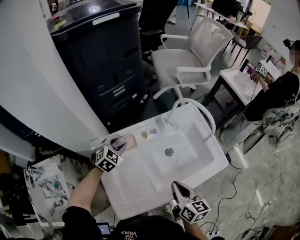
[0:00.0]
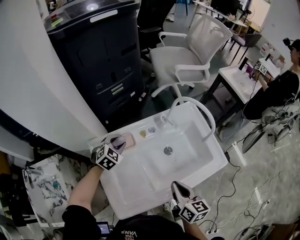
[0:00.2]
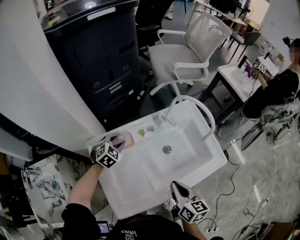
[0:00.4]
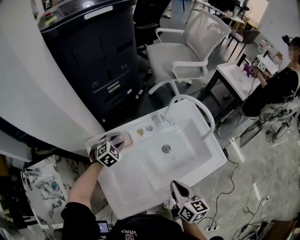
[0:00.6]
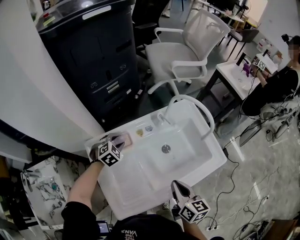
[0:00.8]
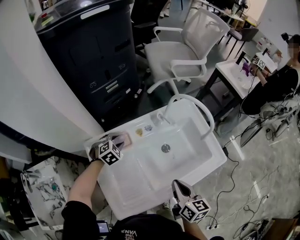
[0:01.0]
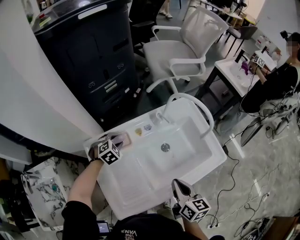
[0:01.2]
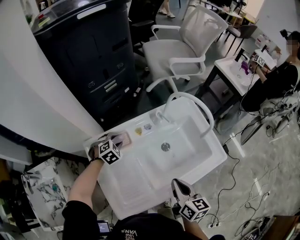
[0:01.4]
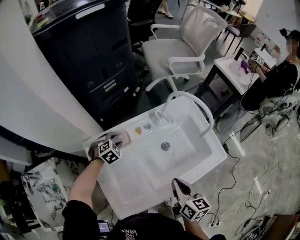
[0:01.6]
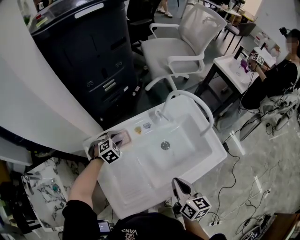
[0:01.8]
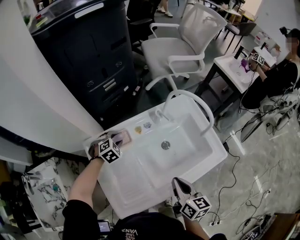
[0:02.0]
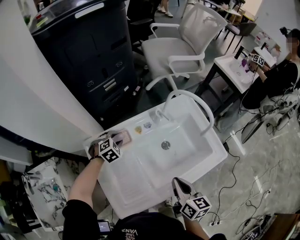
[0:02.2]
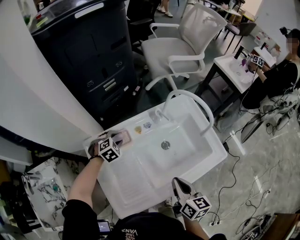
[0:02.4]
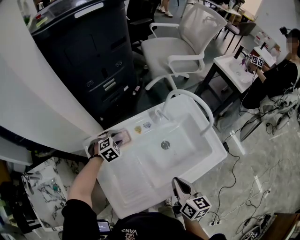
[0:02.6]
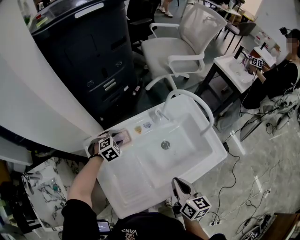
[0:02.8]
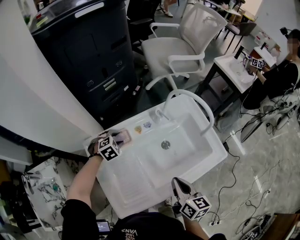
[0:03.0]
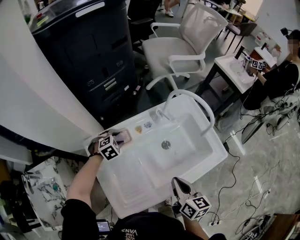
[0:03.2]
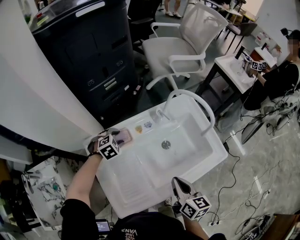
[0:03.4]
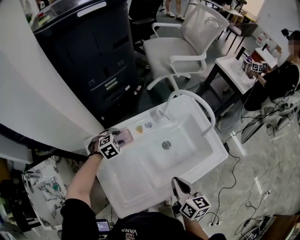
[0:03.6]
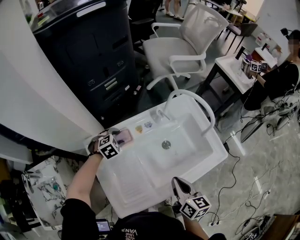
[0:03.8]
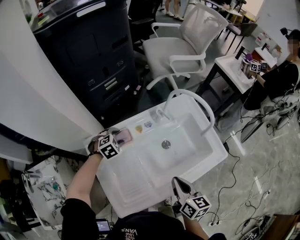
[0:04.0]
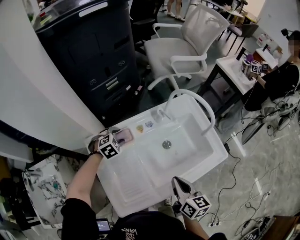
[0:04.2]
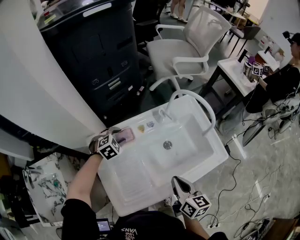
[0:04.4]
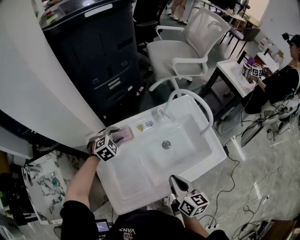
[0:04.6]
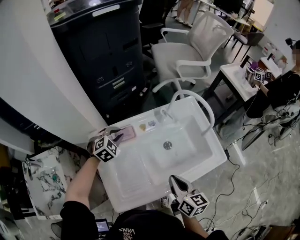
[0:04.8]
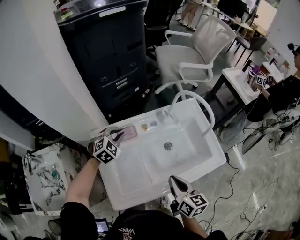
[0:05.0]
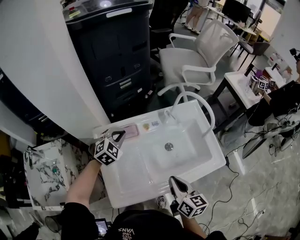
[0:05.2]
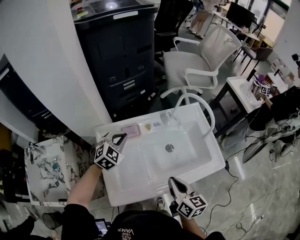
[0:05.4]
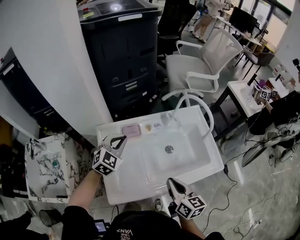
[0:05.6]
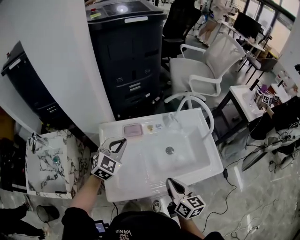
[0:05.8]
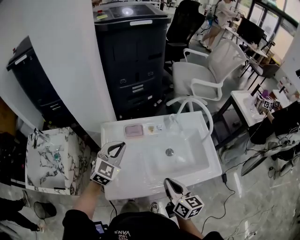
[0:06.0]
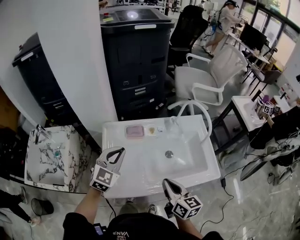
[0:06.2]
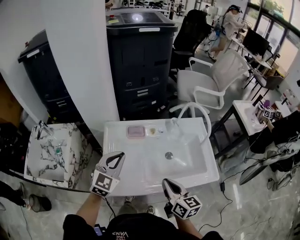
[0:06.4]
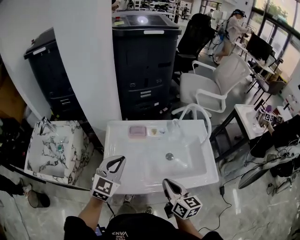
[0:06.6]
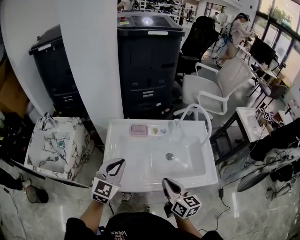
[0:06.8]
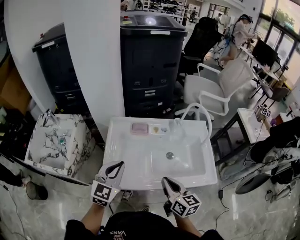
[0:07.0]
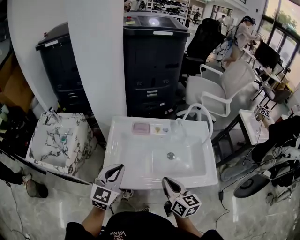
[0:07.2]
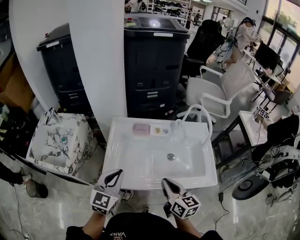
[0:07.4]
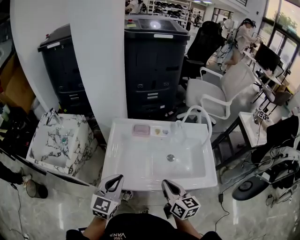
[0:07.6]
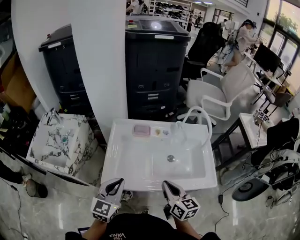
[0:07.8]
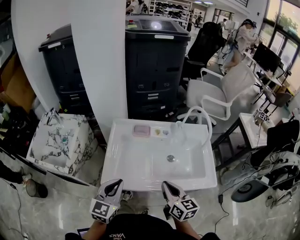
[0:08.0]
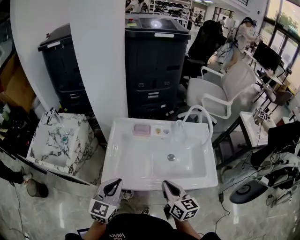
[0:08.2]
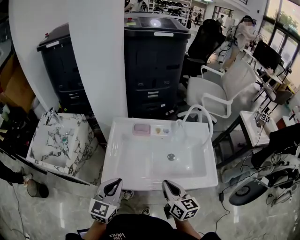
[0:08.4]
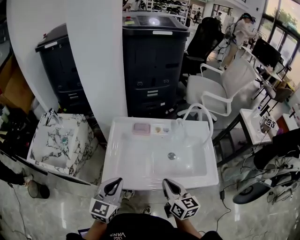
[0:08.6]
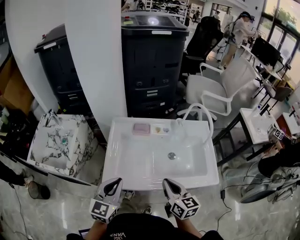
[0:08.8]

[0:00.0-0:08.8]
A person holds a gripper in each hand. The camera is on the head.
0:00.0 to 0:01.4: The left gripper goes about 10 cm downward.
0:01.4 to 0:04.4: There are only small adjustments of the grippers.
0:04.4 to 0:05.8: The left gripper goes approximately 20 cm upward and backward, tilts its fingers roughly 30 degrees upward, and closes up.
0:05.8 to 0:07.4: The left gripper shifts roughly 20 cm backward, and turns by some 30 degrees.
0:07.4 to 0:08.8: The grippers move only a little.

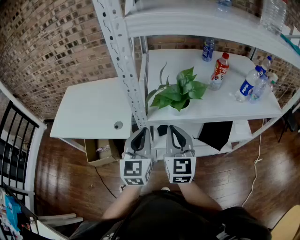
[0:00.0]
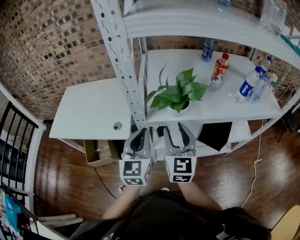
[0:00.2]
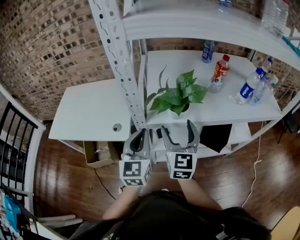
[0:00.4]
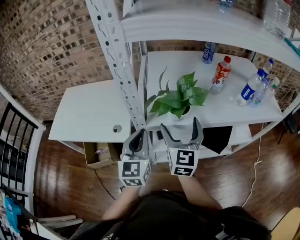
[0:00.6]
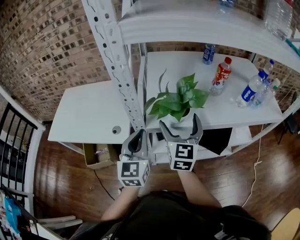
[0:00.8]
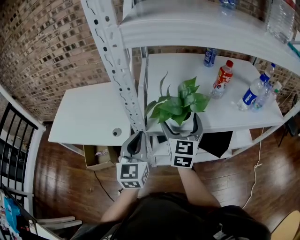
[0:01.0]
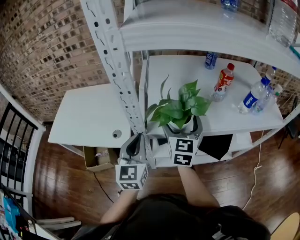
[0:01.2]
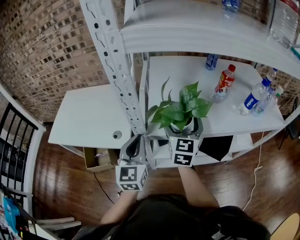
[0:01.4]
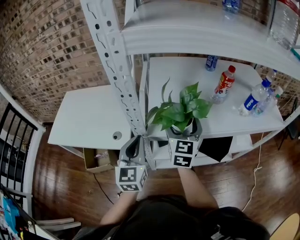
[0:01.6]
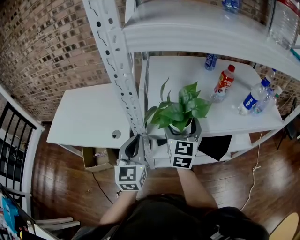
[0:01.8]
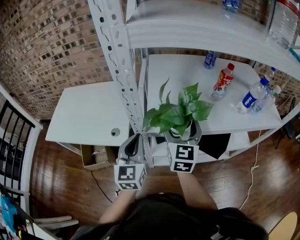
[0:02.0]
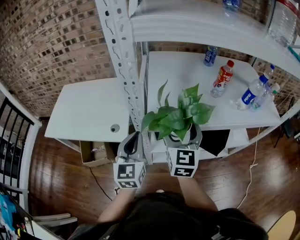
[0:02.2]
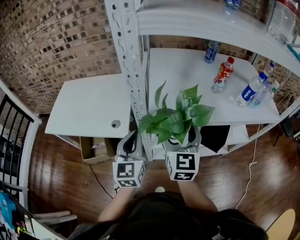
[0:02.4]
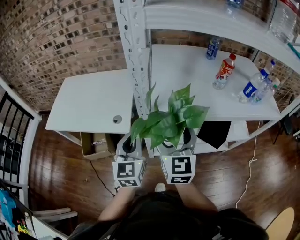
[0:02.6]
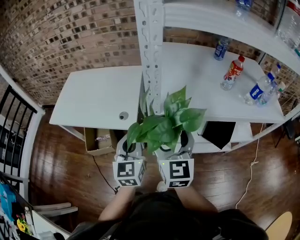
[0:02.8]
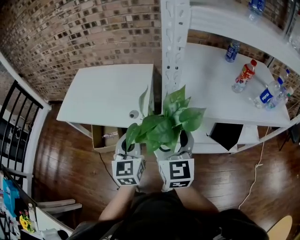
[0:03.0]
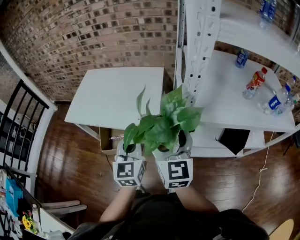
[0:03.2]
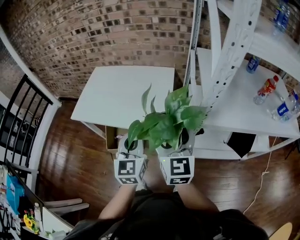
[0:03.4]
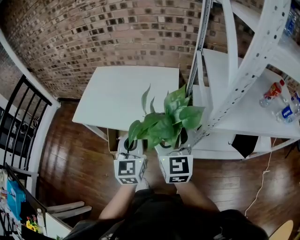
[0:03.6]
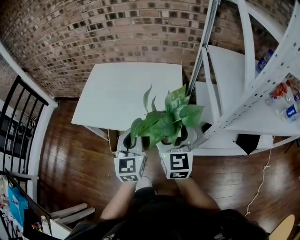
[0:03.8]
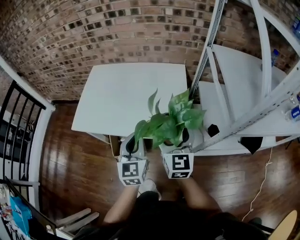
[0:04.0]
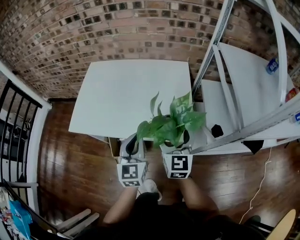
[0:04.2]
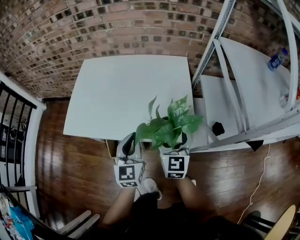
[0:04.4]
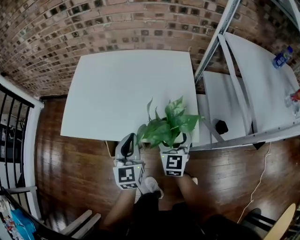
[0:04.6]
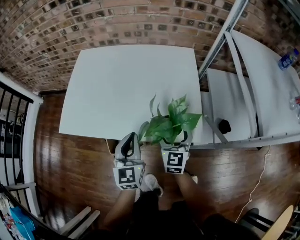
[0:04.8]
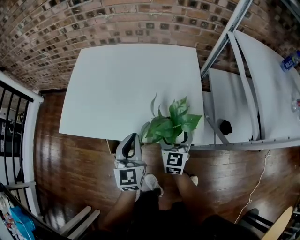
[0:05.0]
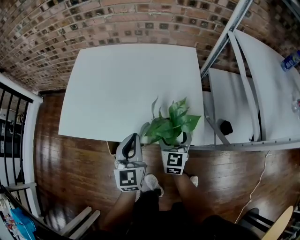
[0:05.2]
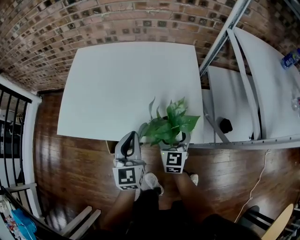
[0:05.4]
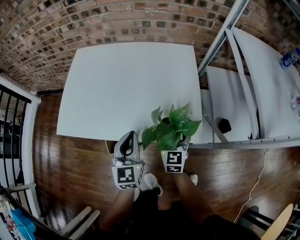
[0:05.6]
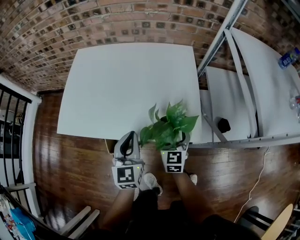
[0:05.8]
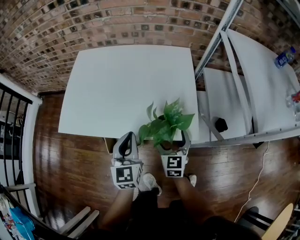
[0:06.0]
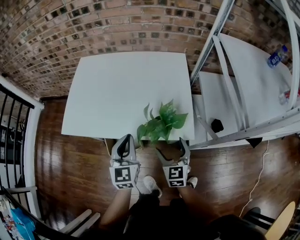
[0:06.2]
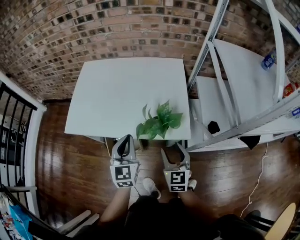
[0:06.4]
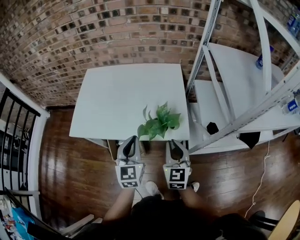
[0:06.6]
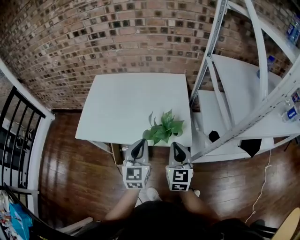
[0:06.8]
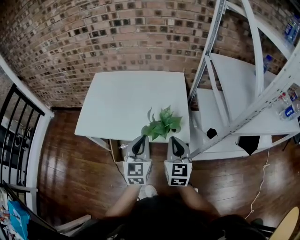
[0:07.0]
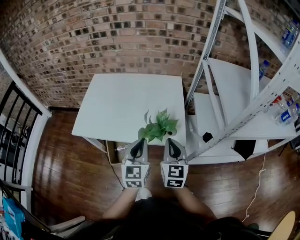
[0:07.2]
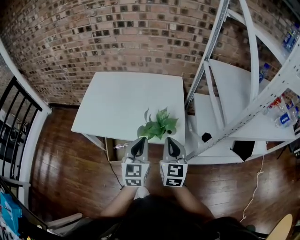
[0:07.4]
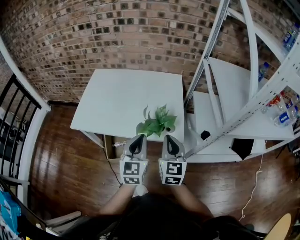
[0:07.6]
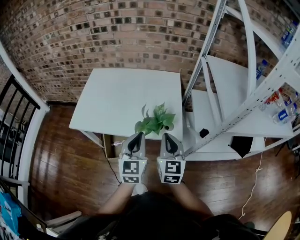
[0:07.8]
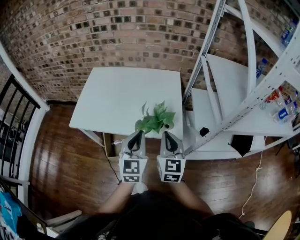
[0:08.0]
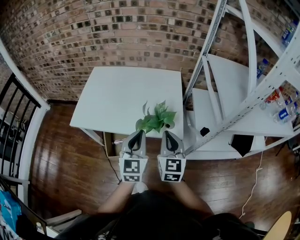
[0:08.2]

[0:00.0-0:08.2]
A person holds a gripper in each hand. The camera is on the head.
0:00.0 to 0:01.6: The right gripper travels forward by about 15 cm, and opens up, while the left gripper shifts by approximately 5 cm.
0:01.6 to 0:03.2: The left gripper shifts some 20 cm to the left; the right gripper goes some 25 cm to the left and backward, and swivels approximately 20 degrees.
0:03.2 to 0:05.0: The right gripper shifts about 40 cm downward, forward and to the left, and turns by approximately 20 degrees, while the left gripper goes approximately 35 cm to the left, downward and forward.
0:05.0 to 0:06.6: The left gripper moves upward and backward, about 10 cm, while the right gripper heads backward and upward, covering approximately 15 cm, and closes its fingers.
0:06.6 to 0:08.2: Both grippers move upward, some 5 cm.

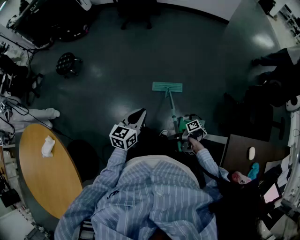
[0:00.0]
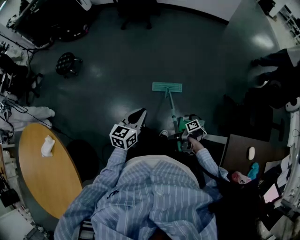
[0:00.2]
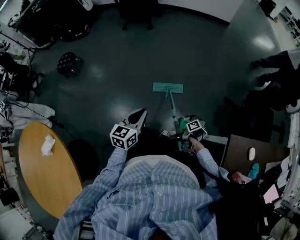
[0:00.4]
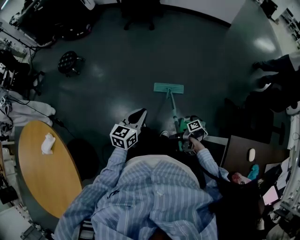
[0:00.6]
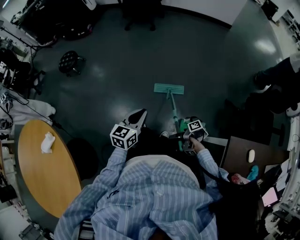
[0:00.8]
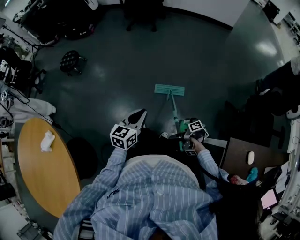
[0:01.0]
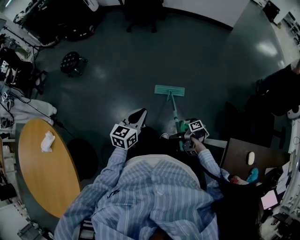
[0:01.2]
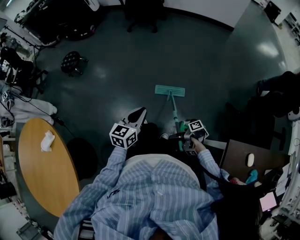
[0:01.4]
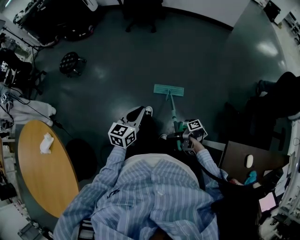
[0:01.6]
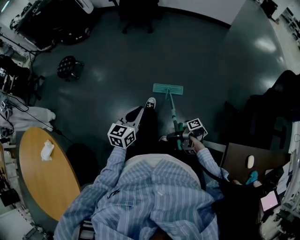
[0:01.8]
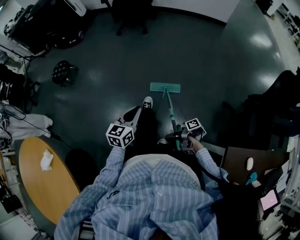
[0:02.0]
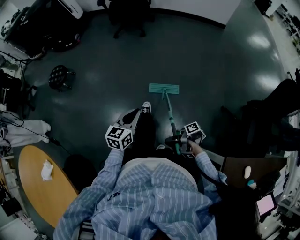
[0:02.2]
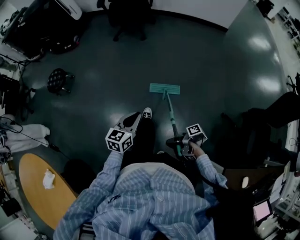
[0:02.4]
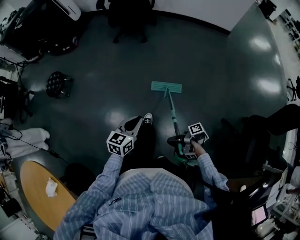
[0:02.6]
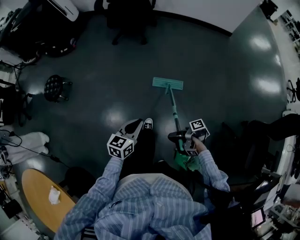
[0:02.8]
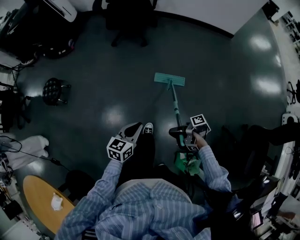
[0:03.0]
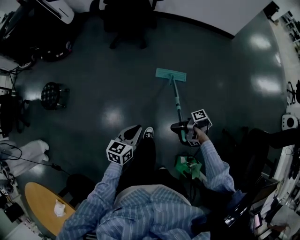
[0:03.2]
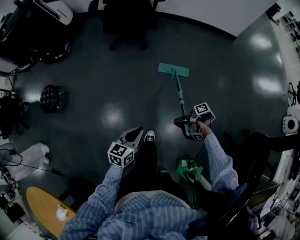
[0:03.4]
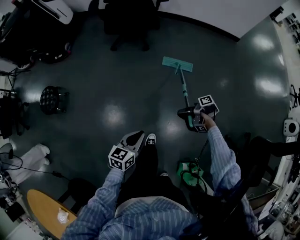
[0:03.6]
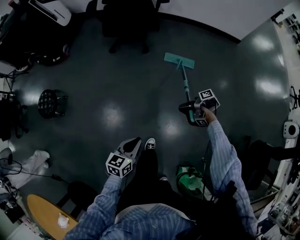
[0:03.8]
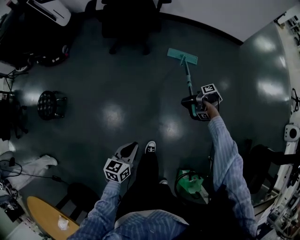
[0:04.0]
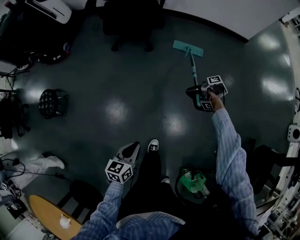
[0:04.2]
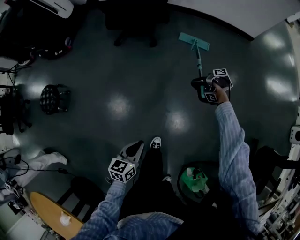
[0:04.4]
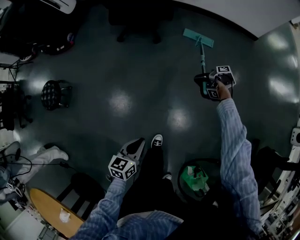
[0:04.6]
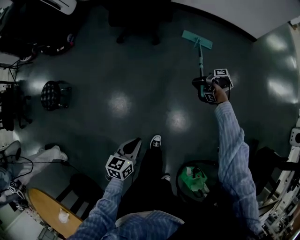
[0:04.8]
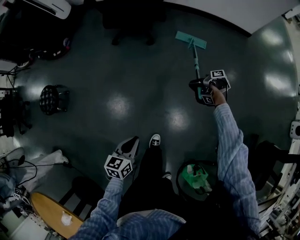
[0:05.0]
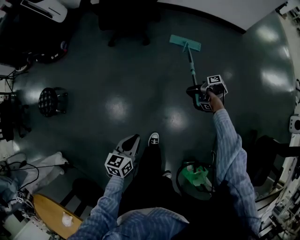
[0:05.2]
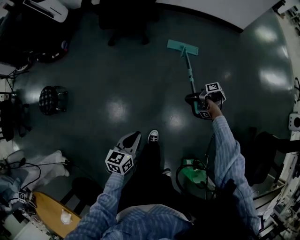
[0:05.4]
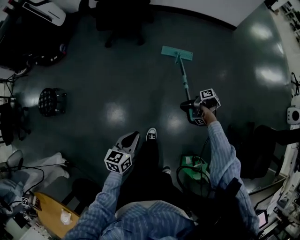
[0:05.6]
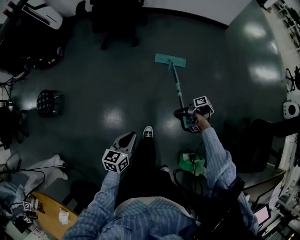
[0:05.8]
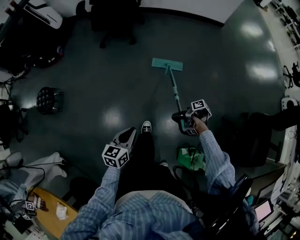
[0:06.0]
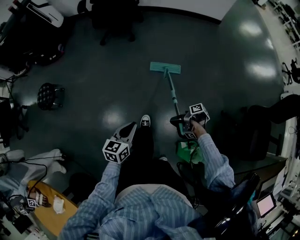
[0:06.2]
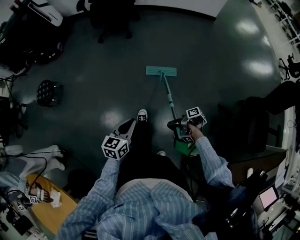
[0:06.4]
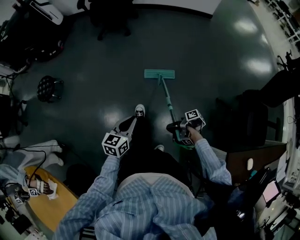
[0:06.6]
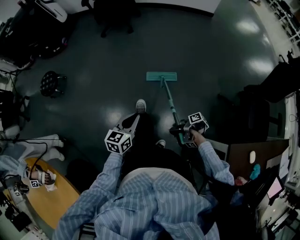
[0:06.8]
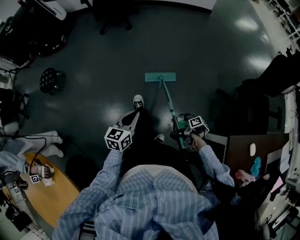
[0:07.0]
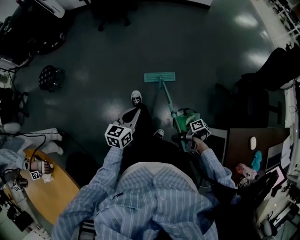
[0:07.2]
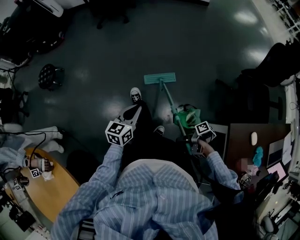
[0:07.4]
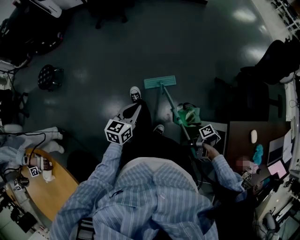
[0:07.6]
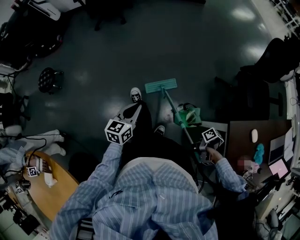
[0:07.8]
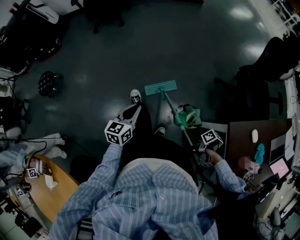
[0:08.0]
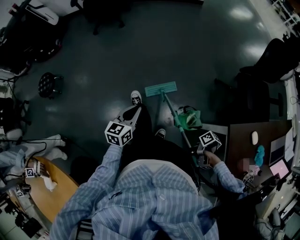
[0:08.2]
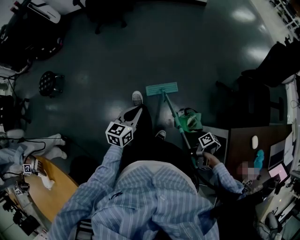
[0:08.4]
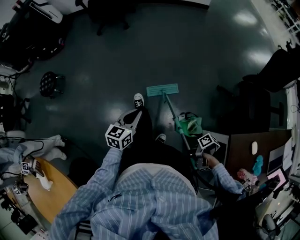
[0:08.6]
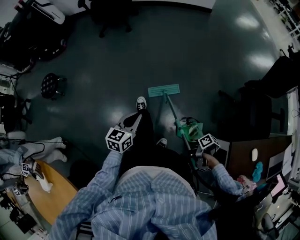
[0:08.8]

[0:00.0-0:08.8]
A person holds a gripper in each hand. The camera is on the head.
0:01.4 to 0:03.0: The left gripper moves some 40 cm.
0:03.0 to 0:04.4: The left gripper changes place by about 20 cm.
0:04.4 to 0:05.8: The left gripper ends up some 15 cm from where it was.
0:05.8 to 0:07.4: The left gripper ends up some 35 cm from where it was.
0:07.4 to 0:08.8: The left gripper ends up approximately 5 cm from where it was.
